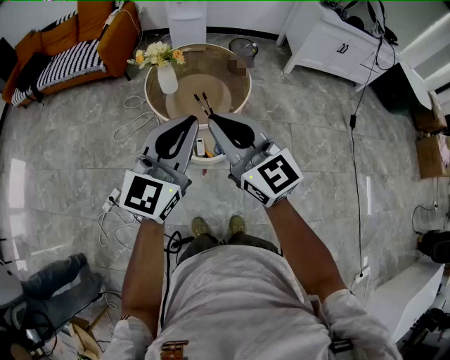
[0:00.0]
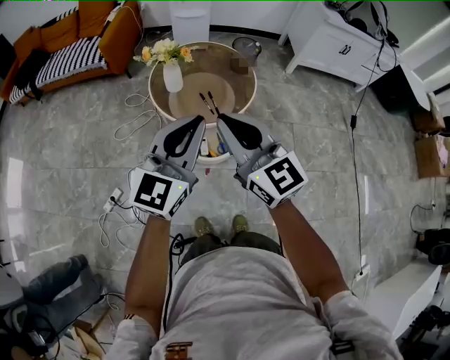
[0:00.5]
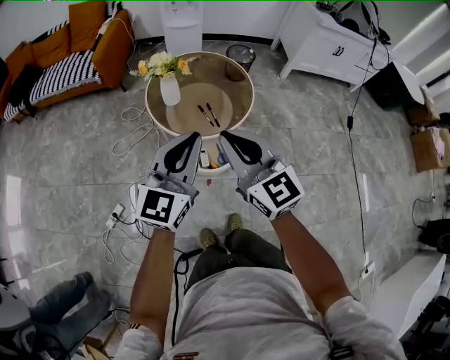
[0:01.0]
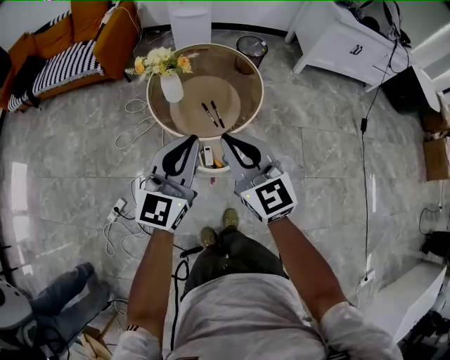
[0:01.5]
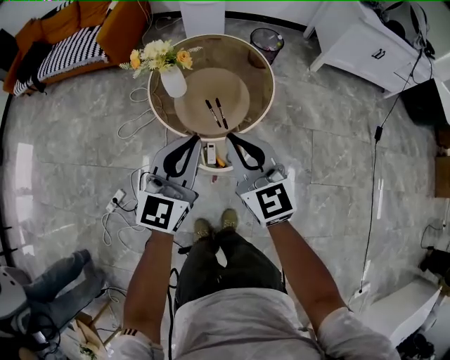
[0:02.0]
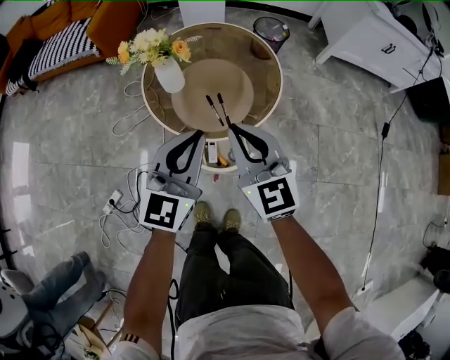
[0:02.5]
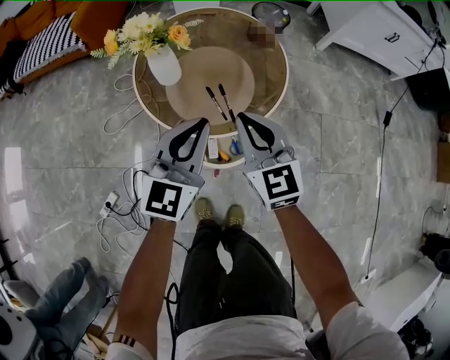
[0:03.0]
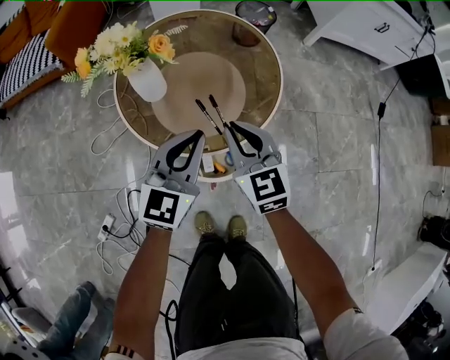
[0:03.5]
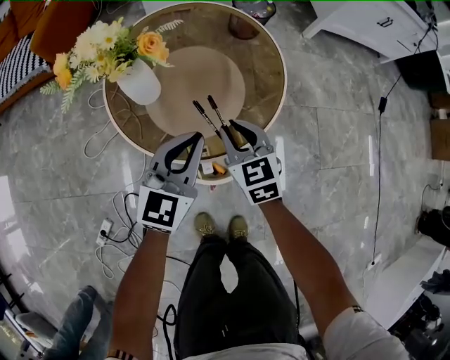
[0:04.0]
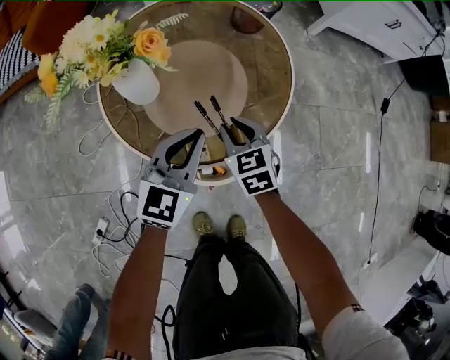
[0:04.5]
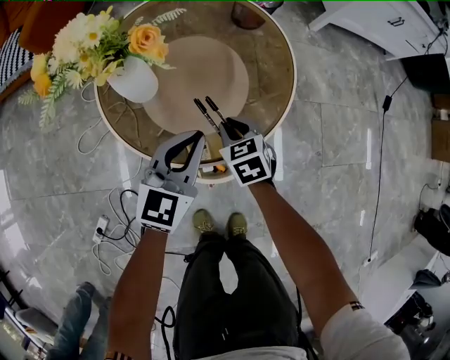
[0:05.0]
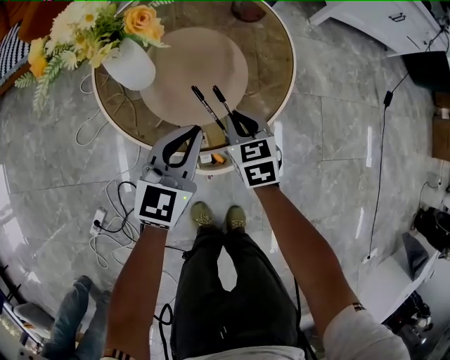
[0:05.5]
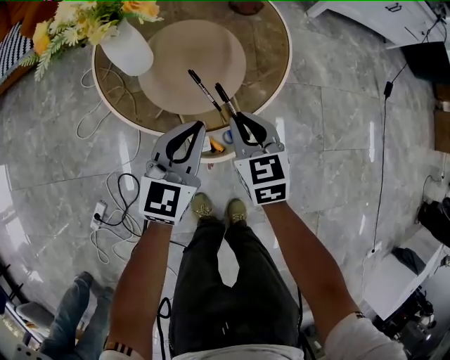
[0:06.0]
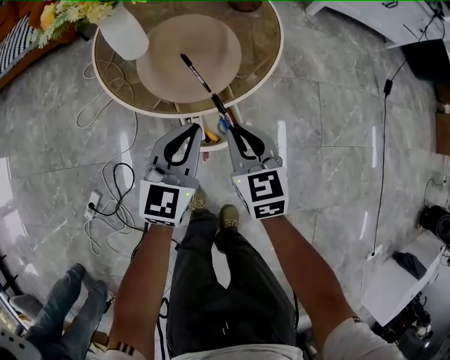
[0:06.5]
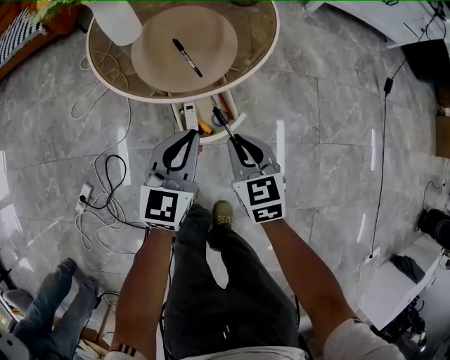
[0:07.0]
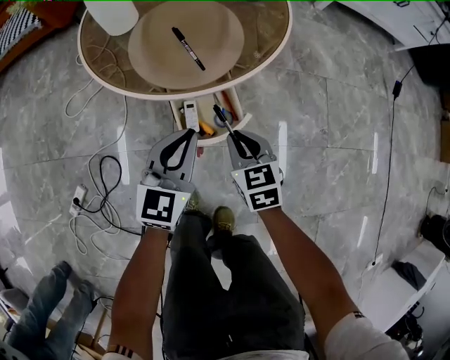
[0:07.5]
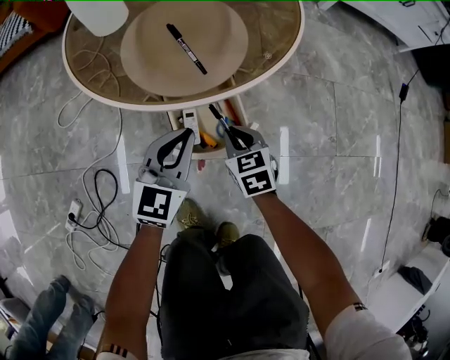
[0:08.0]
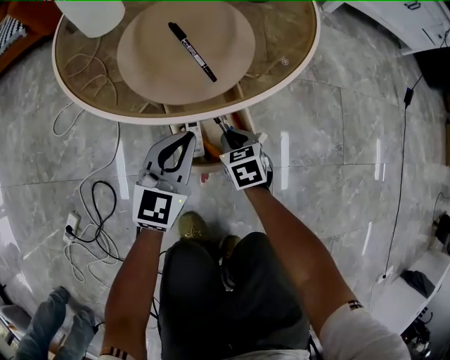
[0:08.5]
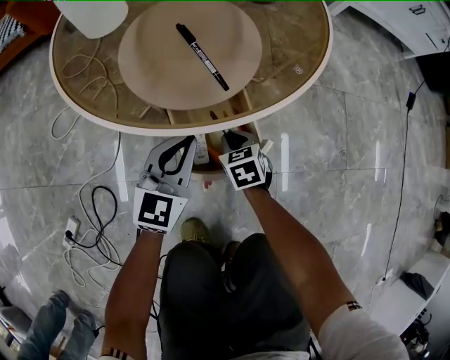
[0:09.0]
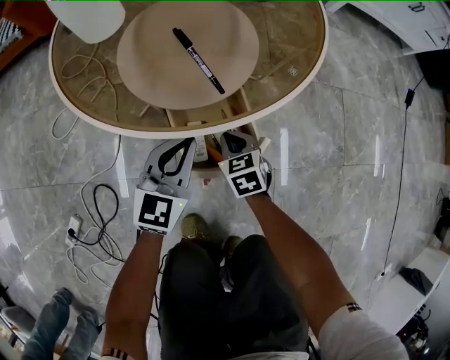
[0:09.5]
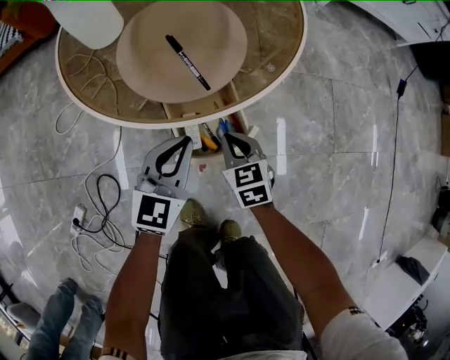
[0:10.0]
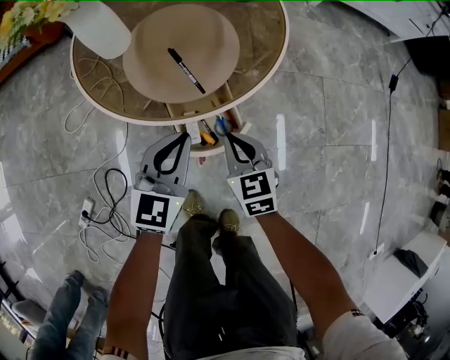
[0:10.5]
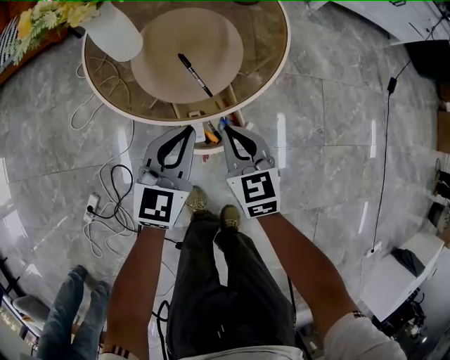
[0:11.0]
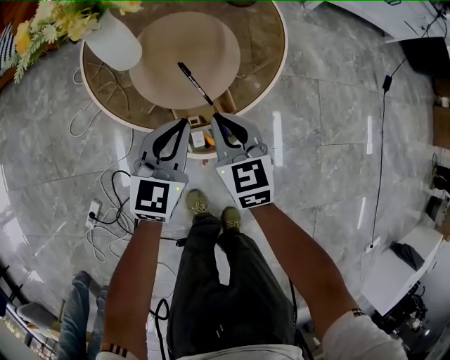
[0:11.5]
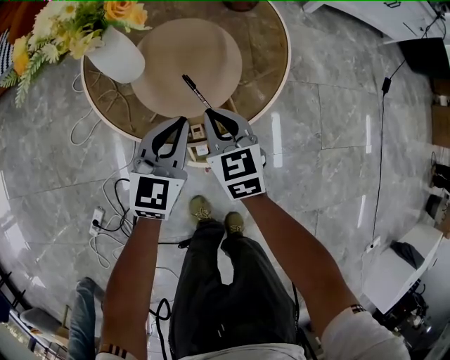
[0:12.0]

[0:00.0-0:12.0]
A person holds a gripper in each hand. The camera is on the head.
0:00.0 to 0:02.0: The right gripper shifts some 20 cm downward and forward. Meanwhile the left gripper shifts some 20 cm forward and downward.
0:02.0 to 0:04.0: The grippers both shift downward and forward by roughly 35 cm. The right gripper rotates approximately 30 degrees.
0:04.0 to 0:06.0: The left gripper travels downward by about 5 cm; the right gripper travels downward and back again, some 10 cm each way.
0:06.0 to 0:08.0: The two grippers go about 20 cm downward.
0:08.0 to 0:10.0: The right gripper reaches some 10 cm downward, then returns.
0:10.0 to 0:12.0: The right gripper is displaced upward, forward and to the left by roughly 25 cm. Meanwhile the left gripper moves upward and forward, roughly 15 cm.

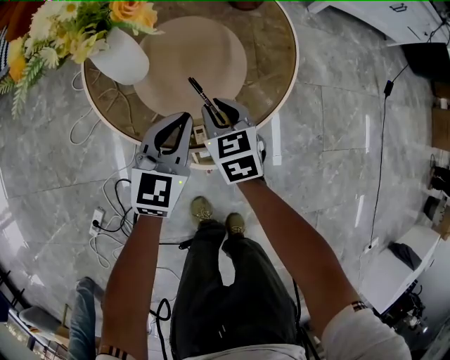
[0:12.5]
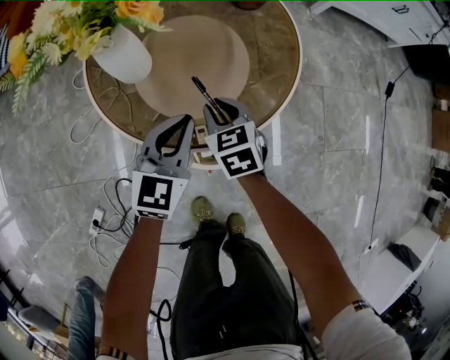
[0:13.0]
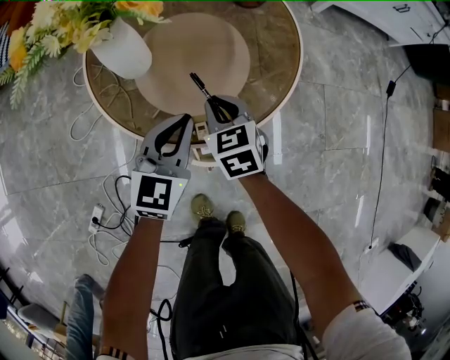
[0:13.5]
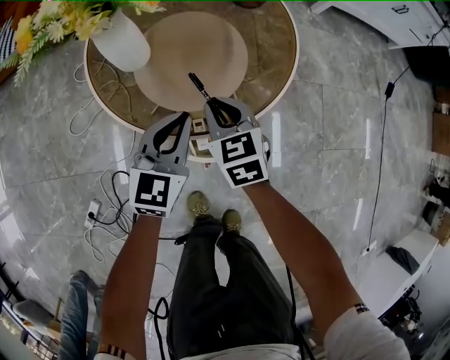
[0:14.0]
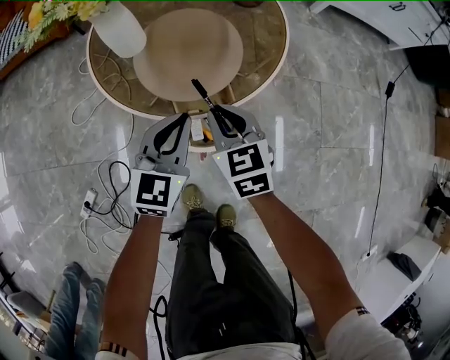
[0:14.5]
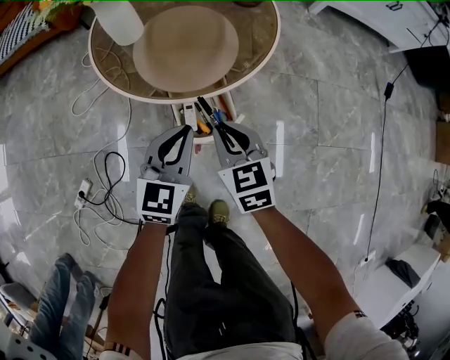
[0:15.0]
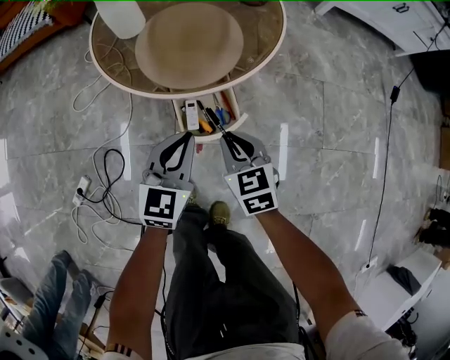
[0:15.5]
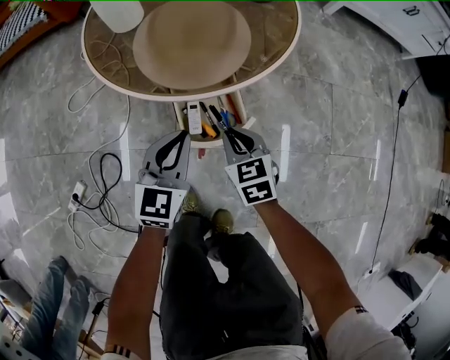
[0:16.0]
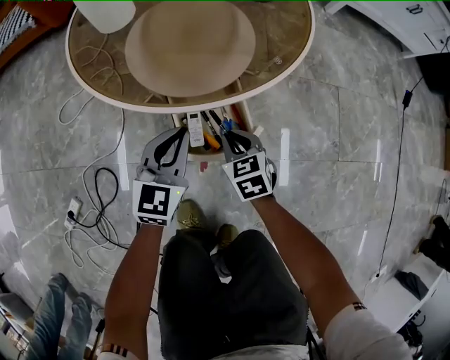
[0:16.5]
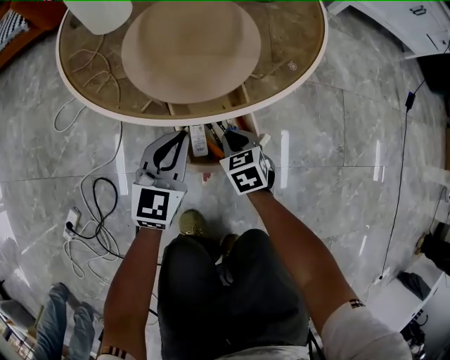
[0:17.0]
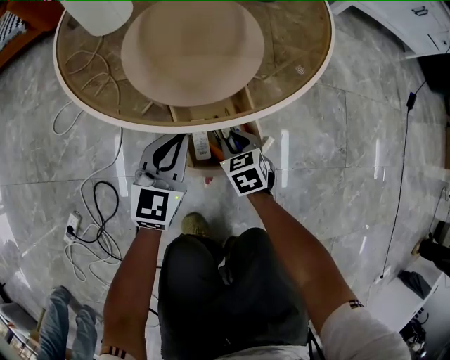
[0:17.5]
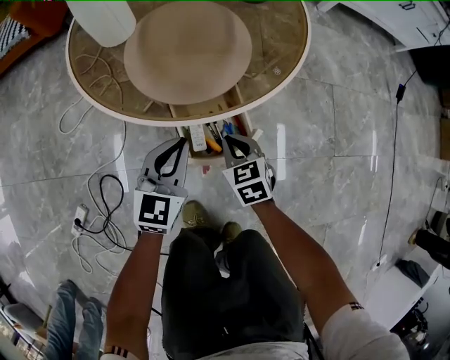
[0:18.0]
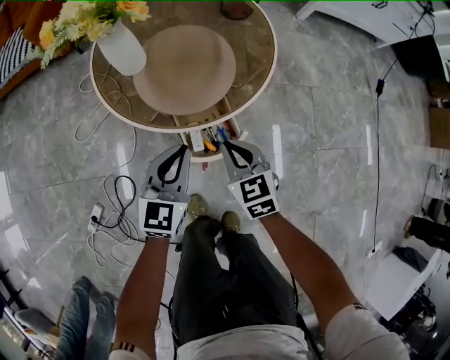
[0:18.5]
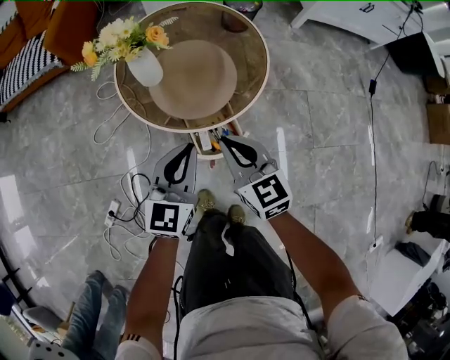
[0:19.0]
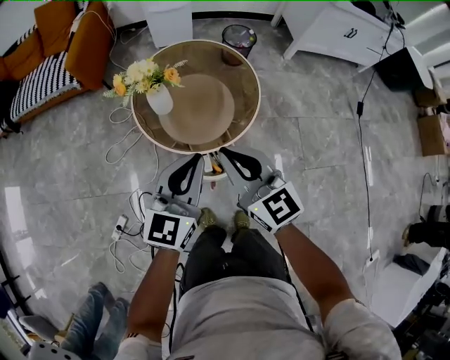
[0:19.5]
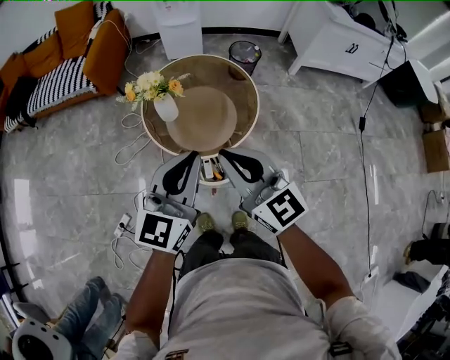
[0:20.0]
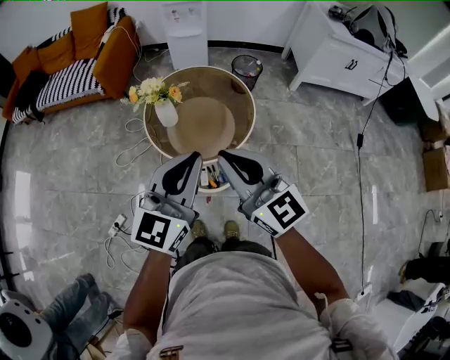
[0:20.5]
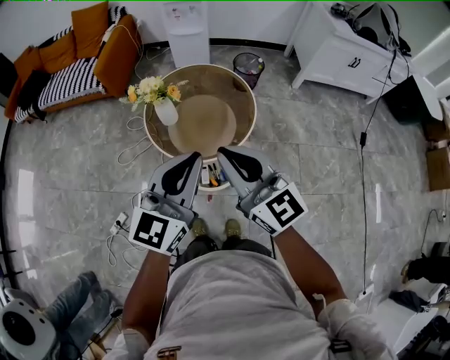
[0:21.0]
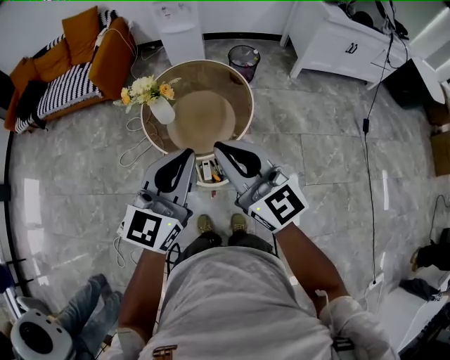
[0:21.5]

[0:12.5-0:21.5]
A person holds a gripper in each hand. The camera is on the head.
0:12.5 to 0:14.5: The right gripper heads backward and upward, covering approximately 10 cm, while the left gripper travels backward by approximately 10 cm.
0:14.5 to 0:17.0: The grippers both shift downward by about 25 cm.
0:17.0 to 0:19.5: The two grippers go about 60 cm upward. The right gripper points its fingers roughly 50 degrees further upward.
0:19.5 to 0:21.5: Both grippers travel together upward and to the right, approximately 15 cm.

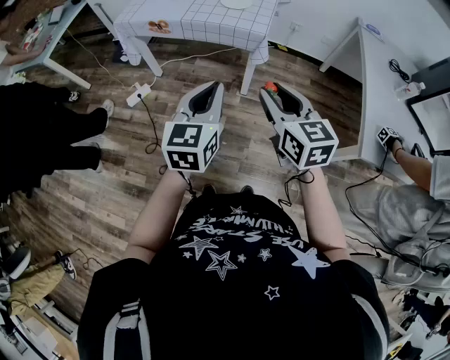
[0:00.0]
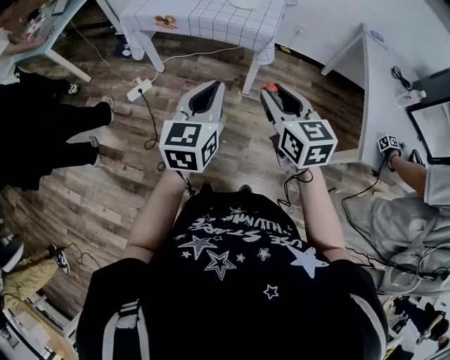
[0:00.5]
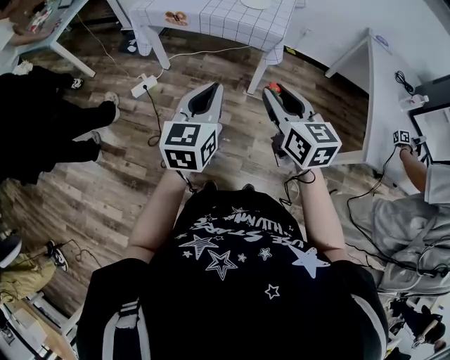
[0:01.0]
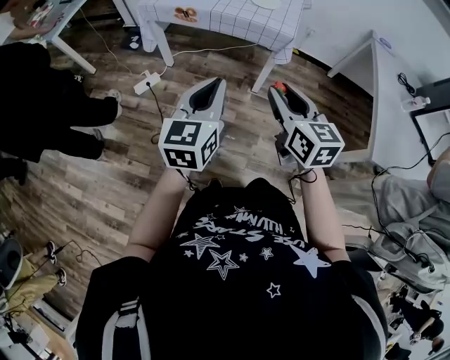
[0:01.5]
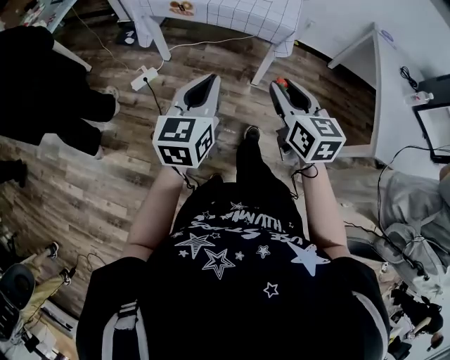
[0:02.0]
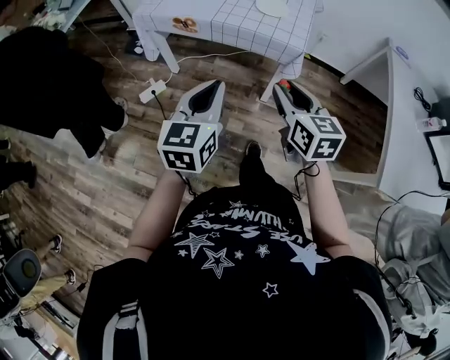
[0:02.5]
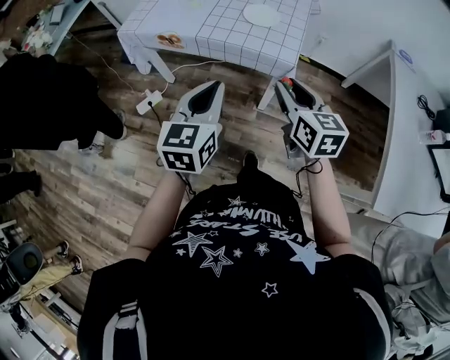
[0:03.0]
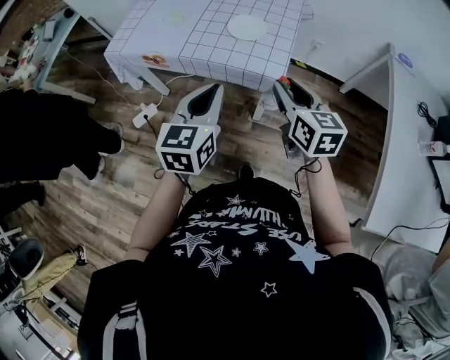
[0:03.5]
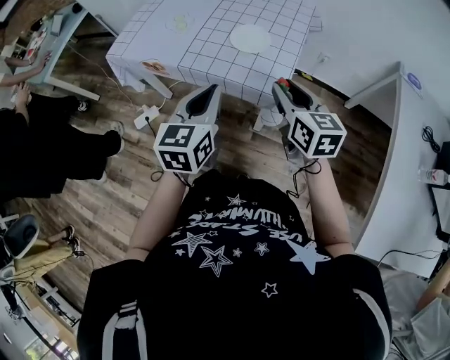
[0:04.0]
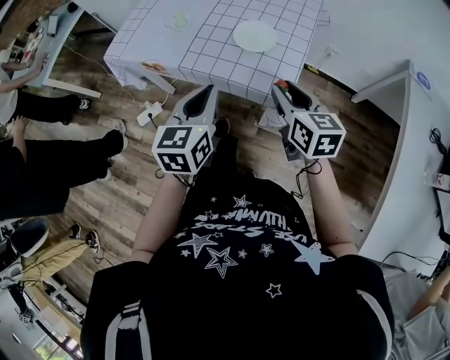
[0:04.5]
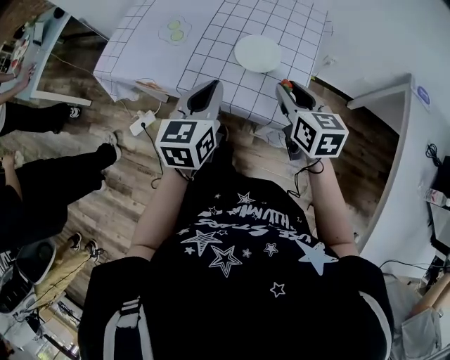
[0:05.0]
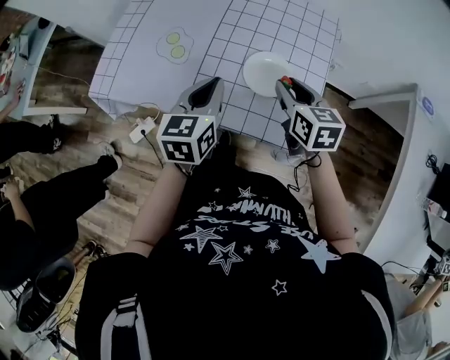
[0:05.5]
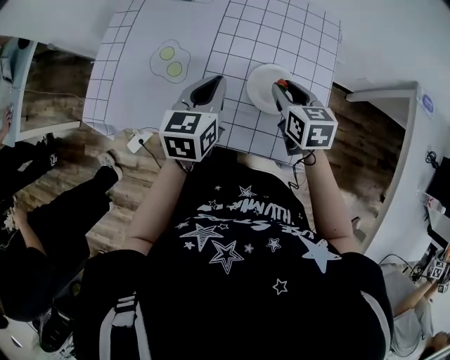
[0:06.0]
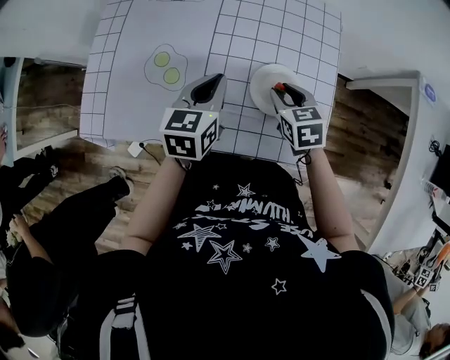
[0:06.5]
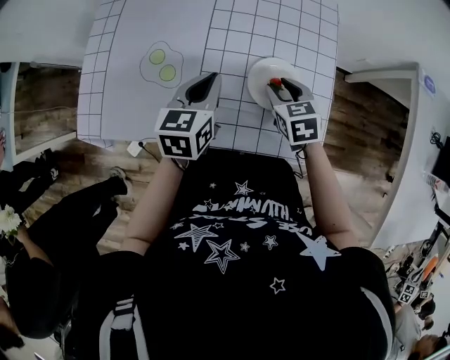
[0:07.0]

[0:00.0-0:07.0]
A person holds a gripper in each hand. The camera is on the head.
0:00.0 to 0:02.0: Both grippers move to the left, some 10 cm.
0:02.0 to 0:03.5: Both grippers move forward and to the right, some 30 cm.
0:03.5 to 0:05.0: Both grippers travel together forward, some 20 cm.
0:05.0 to 0:07.0: The left gripper shifts roughly 20 cm forward, while the right gripper moves forward, downward and to the left, roughly 20 cm, and swivels some 30 degrees.
